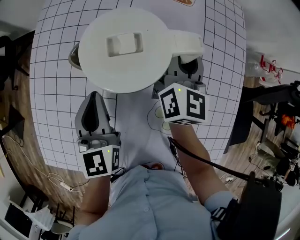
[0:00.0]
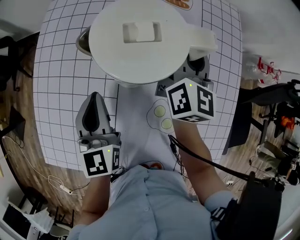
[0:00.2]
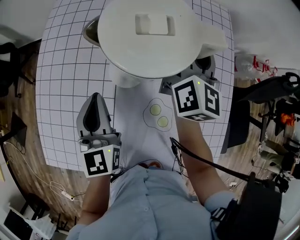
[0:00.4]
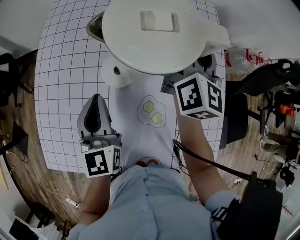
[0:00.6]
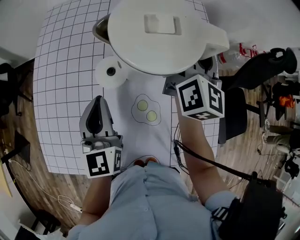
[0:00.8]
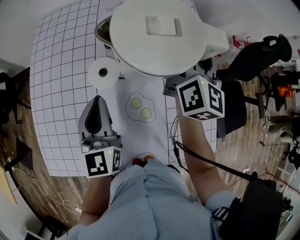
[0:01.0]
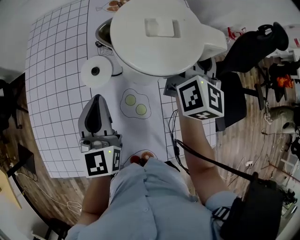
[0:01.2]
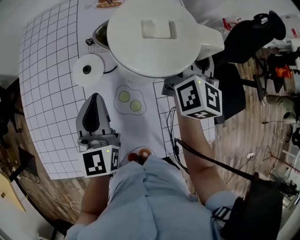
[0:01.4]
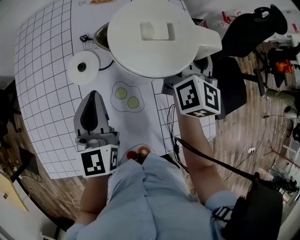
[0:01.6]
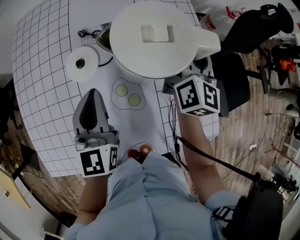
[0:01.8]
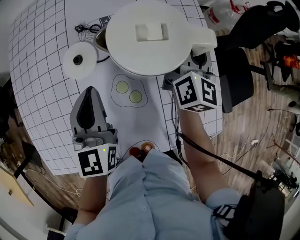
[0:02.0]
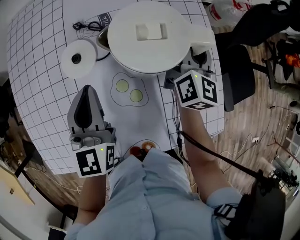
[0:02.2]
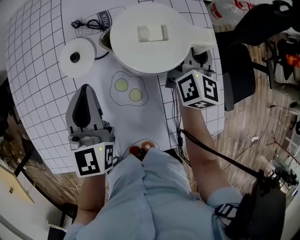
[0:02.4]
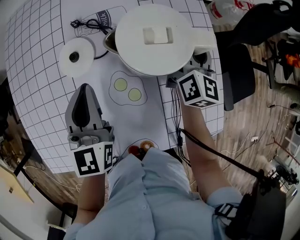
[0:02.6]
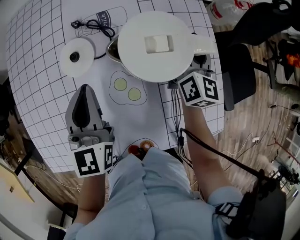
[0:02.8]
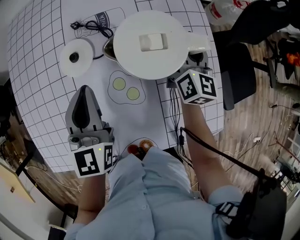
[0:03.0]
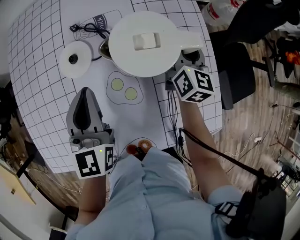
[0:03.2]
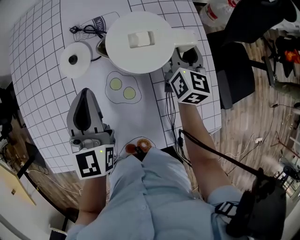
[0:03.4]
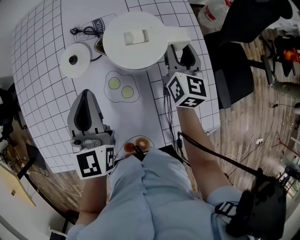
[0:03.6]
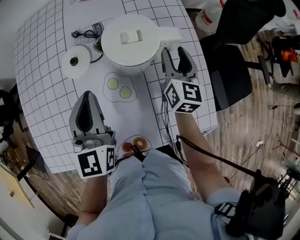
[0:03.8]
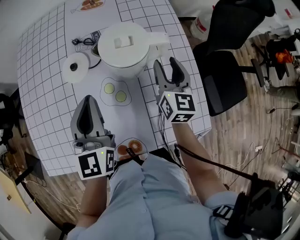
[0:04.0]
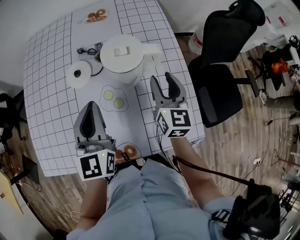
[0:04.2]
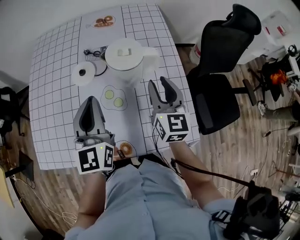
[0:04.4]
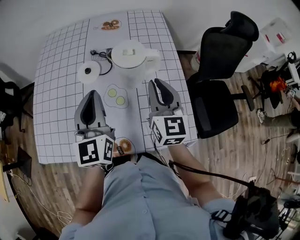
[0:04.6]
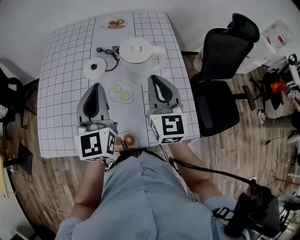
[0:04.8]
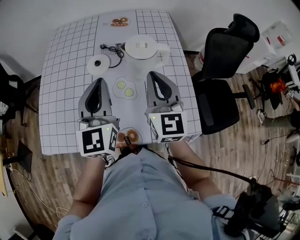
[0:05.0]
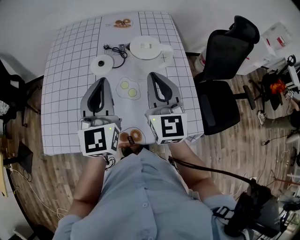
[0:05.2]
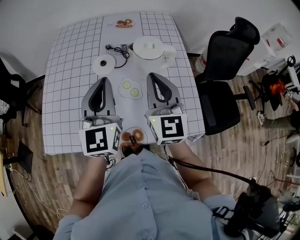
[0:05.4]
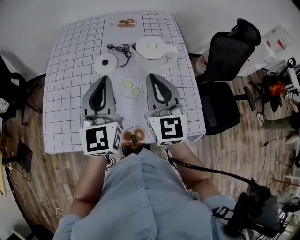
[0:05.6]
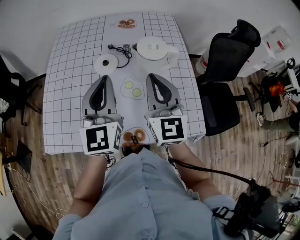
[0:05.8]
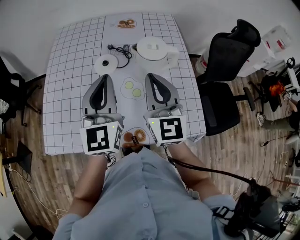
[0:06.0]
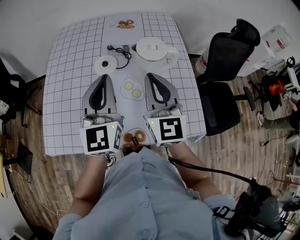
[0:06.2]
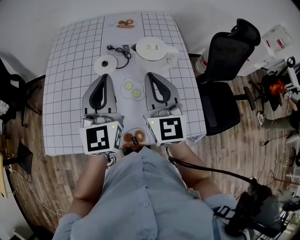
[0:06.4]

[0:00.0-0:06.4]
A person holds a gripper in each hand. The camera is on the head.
0:00.0 to 0:01.6: The right gripper moves to the right and backward, some 25 cm, and rotates some 20 degrees, while the left gripper is displaced to the right by about 15 cm, and rotates roughly 20 degrees.
0:01.6 to 0:03.2: The right gripper goes approximately 15 cm downward.
0:03.2 to 0:04.8: The left gripper shifts some 15 cm upward and backward. Meanwhile the right gripper goes approximately 25 cm backward and upward, swivels roughly 30 degrees, and closes up.
0:04.8 to 0:06.4: The right gripper moves to the left, about 10 cm.

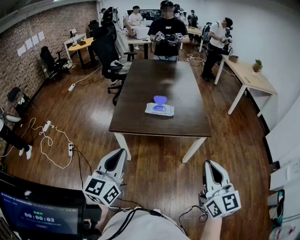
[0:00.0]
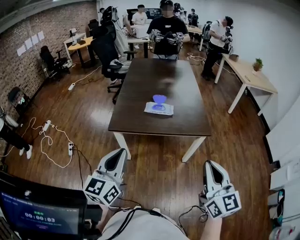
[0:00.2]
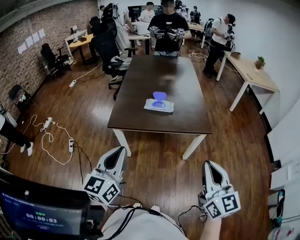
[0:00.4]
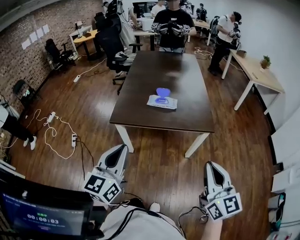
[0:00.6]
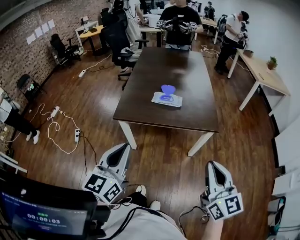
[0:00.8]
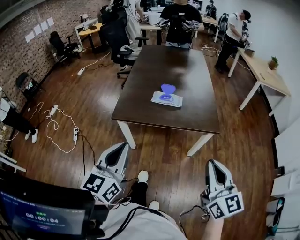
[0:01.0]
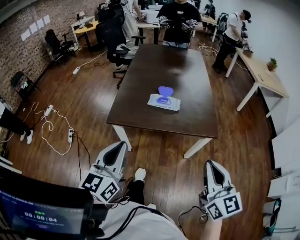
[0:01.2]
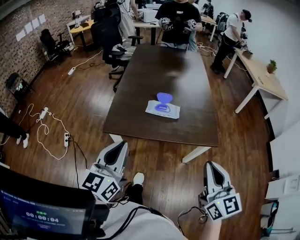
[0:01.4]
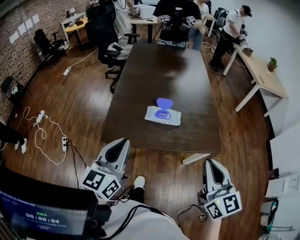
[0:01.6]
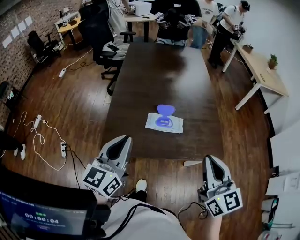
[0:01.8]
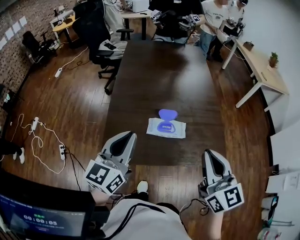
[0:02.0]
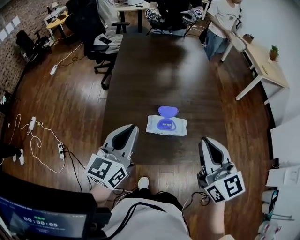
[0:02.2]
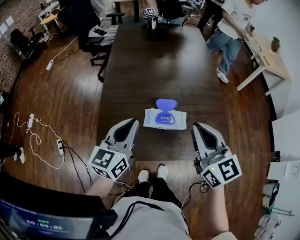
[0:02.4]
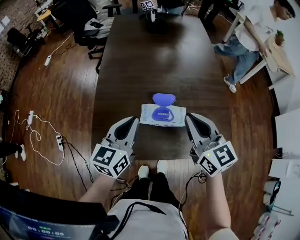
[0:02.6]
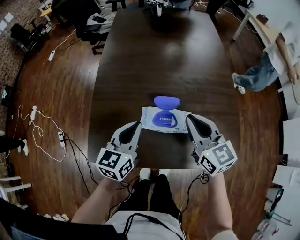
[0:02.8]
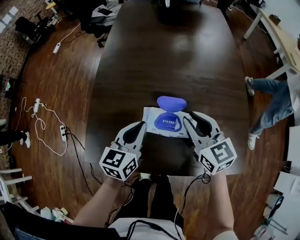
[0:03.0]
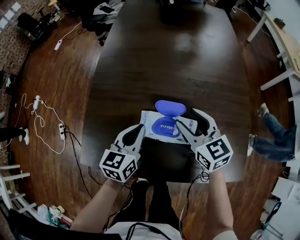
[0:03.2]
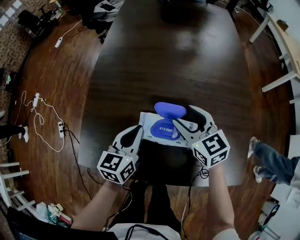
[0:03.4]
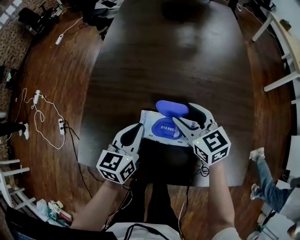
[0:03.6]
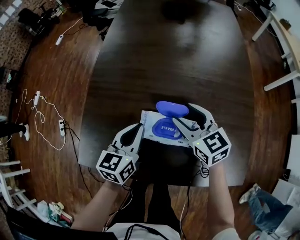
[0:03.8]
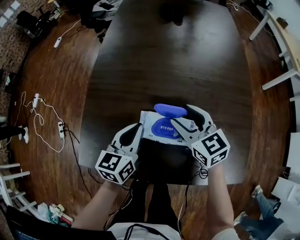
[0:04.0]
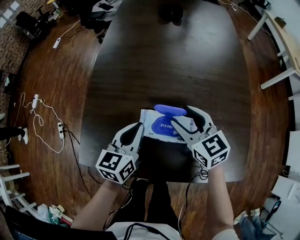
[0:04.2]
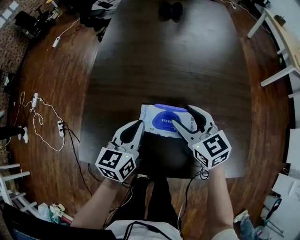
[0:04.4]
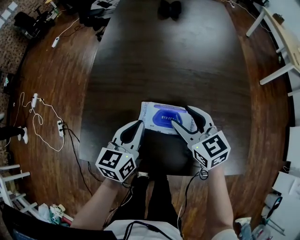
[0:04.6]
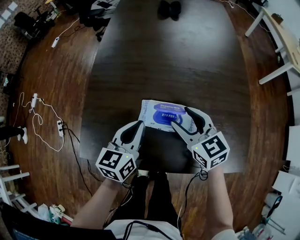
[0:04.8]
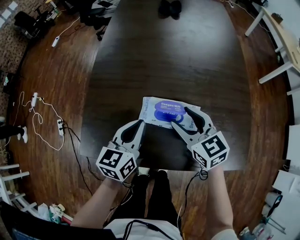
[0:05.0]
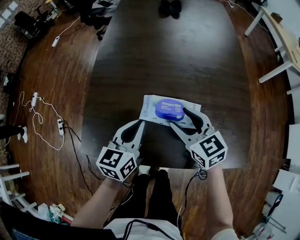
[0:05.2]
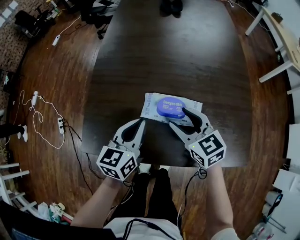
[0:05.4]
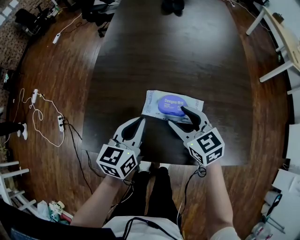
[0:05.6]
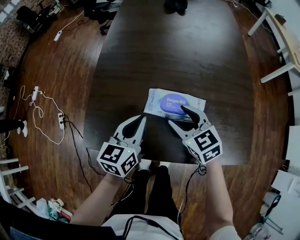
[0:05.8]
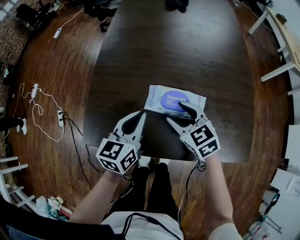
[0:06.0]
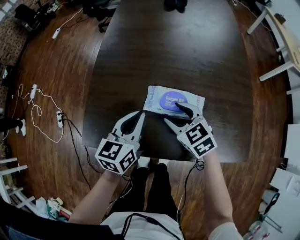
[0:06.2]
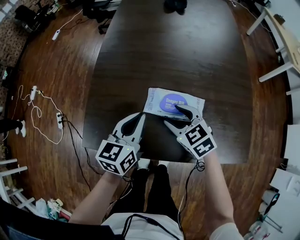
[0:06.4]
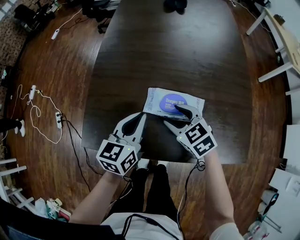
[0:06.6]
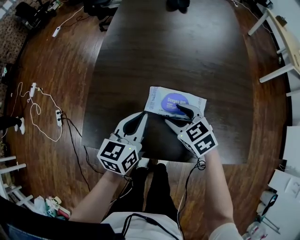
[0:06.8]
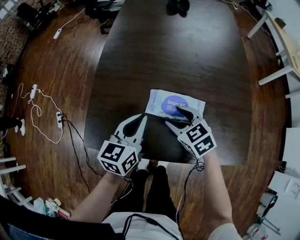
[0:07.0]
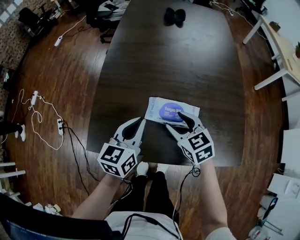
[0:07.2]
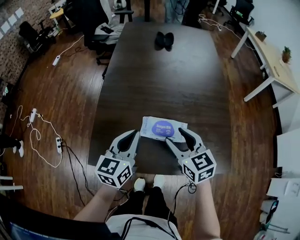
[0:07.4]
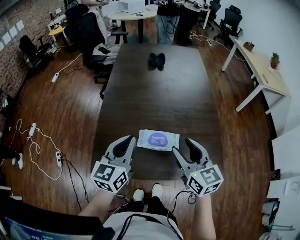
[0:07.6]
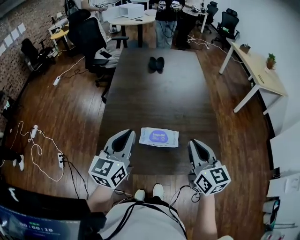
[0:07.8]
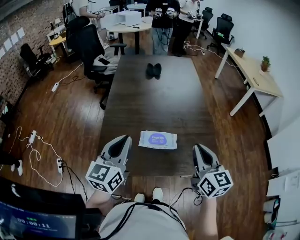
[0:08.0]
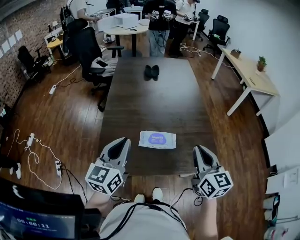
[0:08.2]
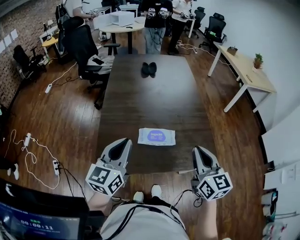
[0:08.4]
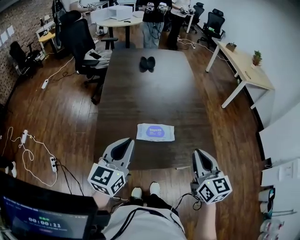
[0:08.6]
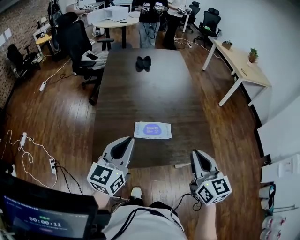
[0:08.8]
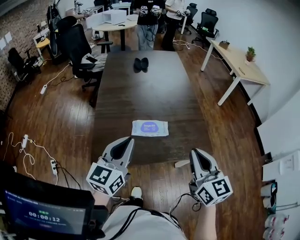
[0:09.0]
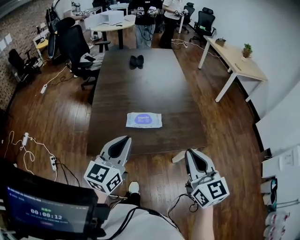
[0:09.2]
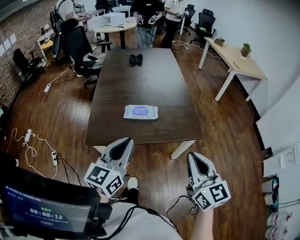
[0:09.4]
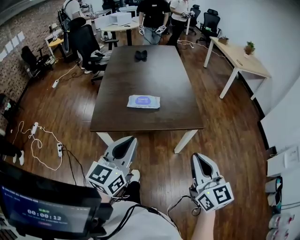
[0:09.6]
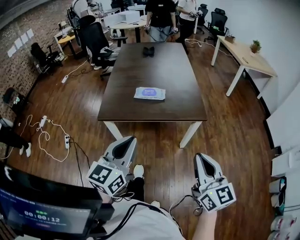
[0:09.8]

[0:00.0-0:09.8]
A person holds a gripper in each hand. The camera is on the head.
0:00.0 to 0:01.4: The two grippers go about 15 cm forward.
0:01.4 to 0:02.8: The left gripper moves forward and downward, approximately 40 cm. Meanwhile the right gripper travels forward by some 40 cm.
0:02.8 to 0:04.2: The left gripper travels downward by approximately 10 cm, while the right gripper goes approximately 15 cm downward and forward, and opens up.
0:04.2 to 0:05.6: Both grippers travel together backward, about 5 cm.
0:05.6 to 0:07.0: The grippers stay close to where they were, moving slightly.
0:07.0 to 0:08.4: The left gripper travels upward by some 25 cm, and turns by some 20 degrees, while the right gripper moves upward and backward, some 35 cm, points its fingers some 40 degrees further upward, and closes up.
0:08.4 to 0:09.8: The pair of grippers is taken backward and to the right, approximately 40 cm.

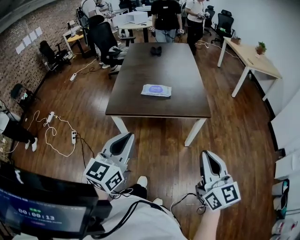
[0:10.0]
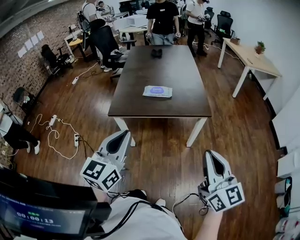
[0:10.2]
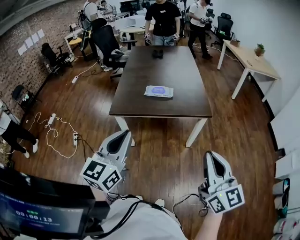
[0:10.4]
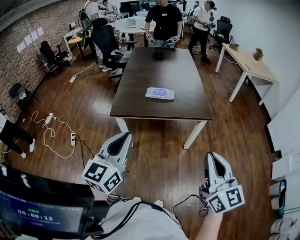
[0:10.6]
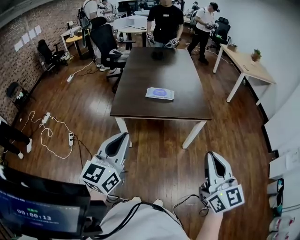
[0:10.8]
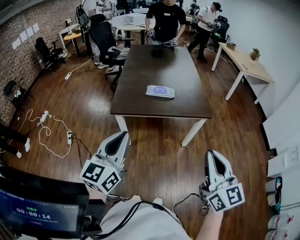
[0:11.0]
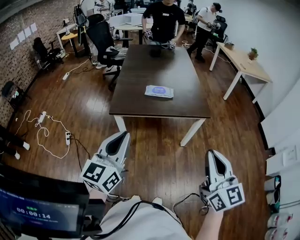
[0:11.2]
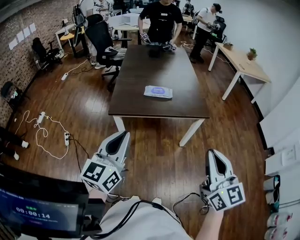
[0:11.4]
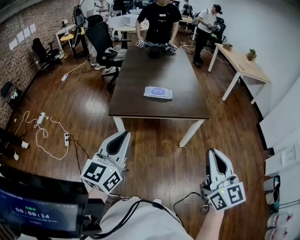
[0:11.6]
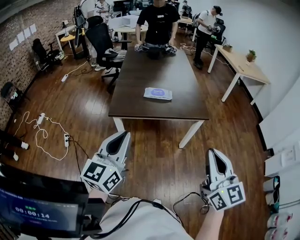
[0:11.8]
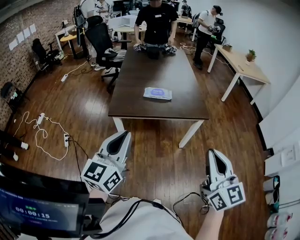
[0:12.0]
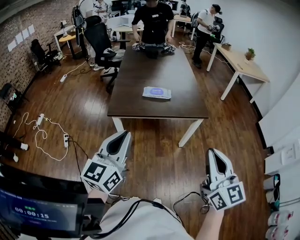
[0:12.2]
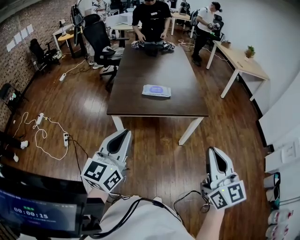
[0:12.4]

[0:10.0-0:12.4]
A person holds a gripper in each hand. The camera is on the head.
0:10.0 to 0:11.2: The grippers both shift to the left by about 10 cm.
0:11.2 to 0:12.4: The two grippers keep their place.

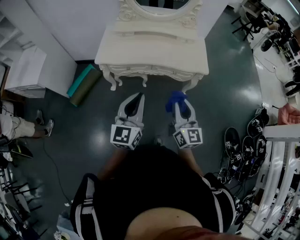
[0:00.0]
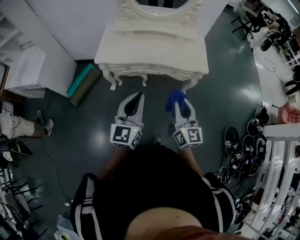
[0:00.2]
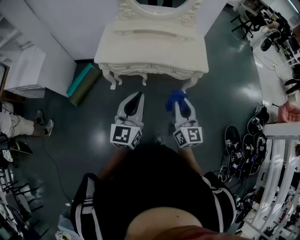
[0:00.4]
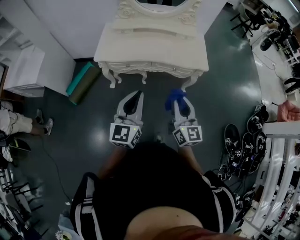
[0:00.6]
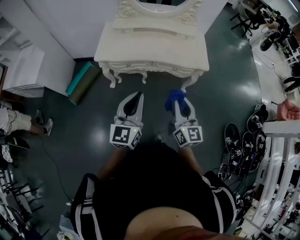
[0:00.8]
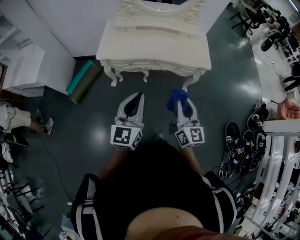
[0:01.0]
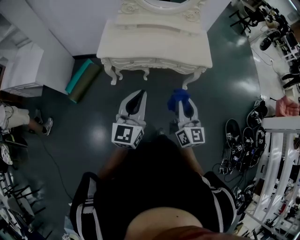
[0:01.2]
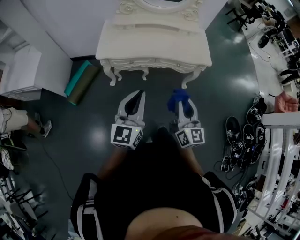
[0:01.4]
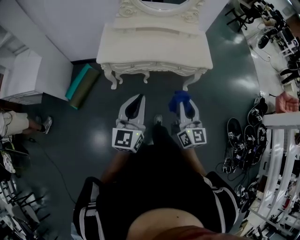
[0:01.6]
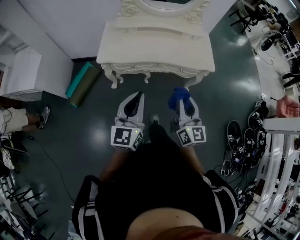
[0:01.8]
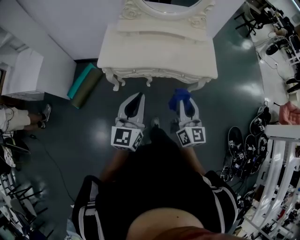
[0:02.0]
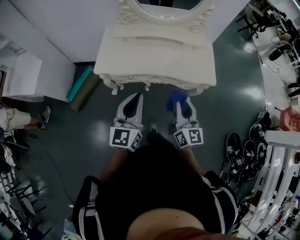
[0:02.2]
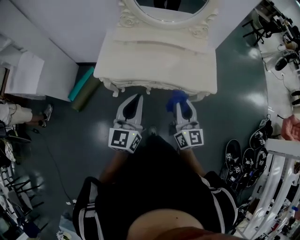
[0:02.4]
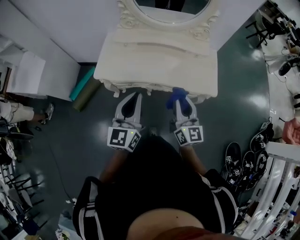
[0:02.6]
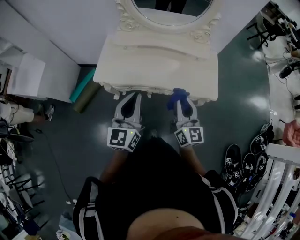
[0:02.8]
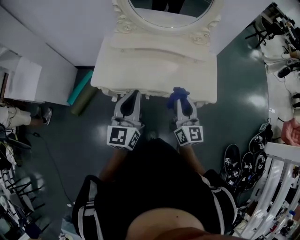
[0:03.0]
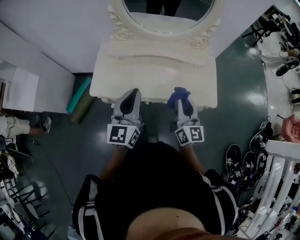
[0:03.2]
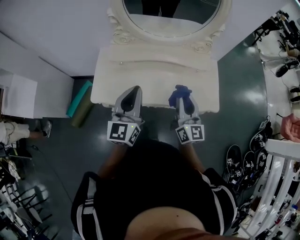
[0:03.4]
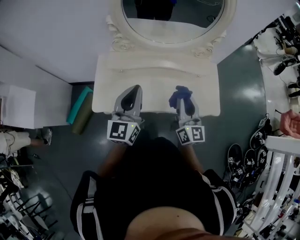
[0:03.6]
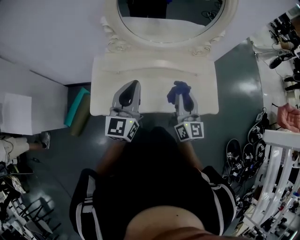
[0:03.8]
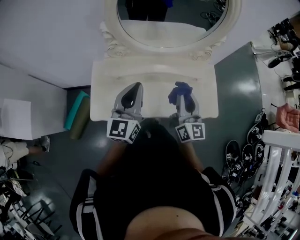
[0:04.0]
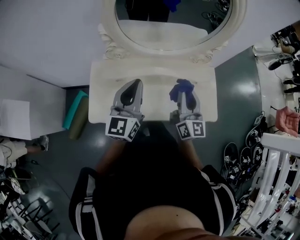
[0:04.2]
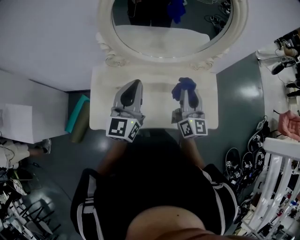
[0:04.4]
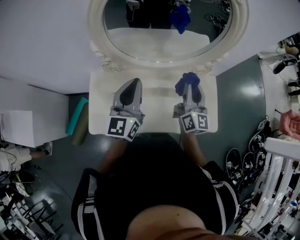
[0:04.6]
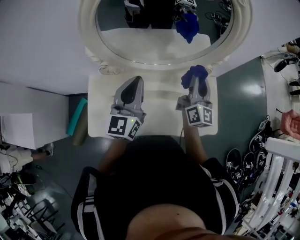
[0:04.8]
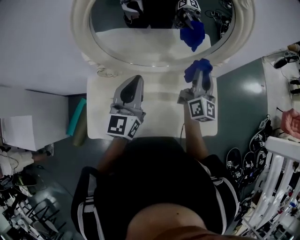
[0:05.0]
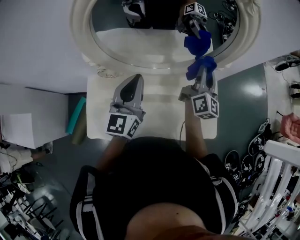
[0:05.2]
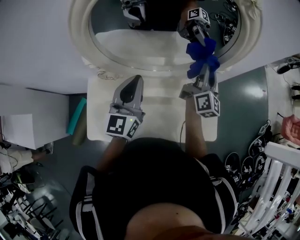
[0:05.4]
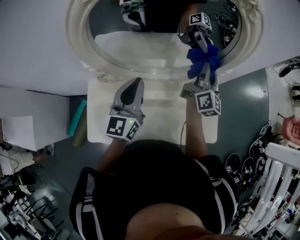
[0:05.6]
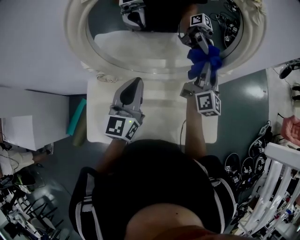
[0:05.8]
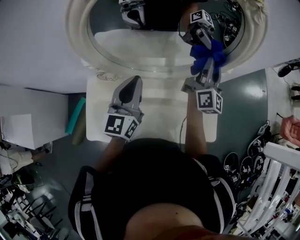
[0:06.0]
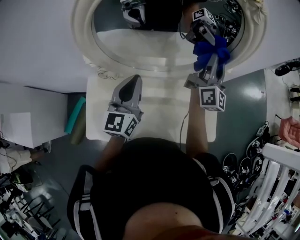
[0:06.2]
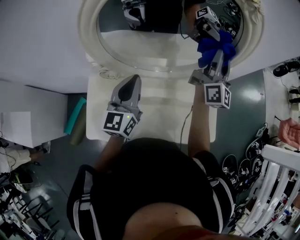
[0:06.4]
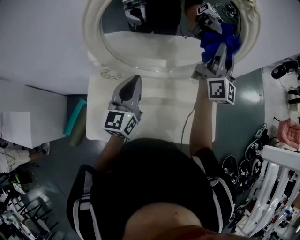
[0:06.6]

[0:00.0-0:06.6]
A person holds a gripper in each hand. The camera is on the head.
0:00.0 to 0:01.6: Both grippers move to the left, roughly 5 cm.
0:01.6 to 0:03.2: Both grippers move forward, roughly 35 cm.
0:03.2 to 0:05.0: The two grippers go some 35 cm forward. The right gripper changes its angle by roughly 20 degrees.
0:05.0 to 0:06.6: The right gripper travels upward and forward by roughly 15 cm.
